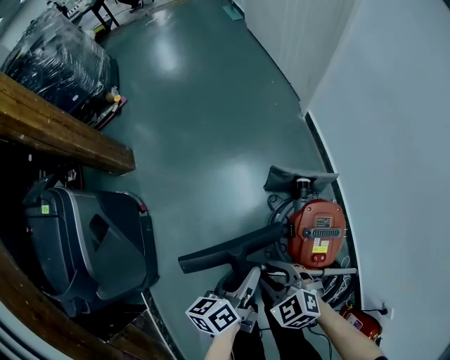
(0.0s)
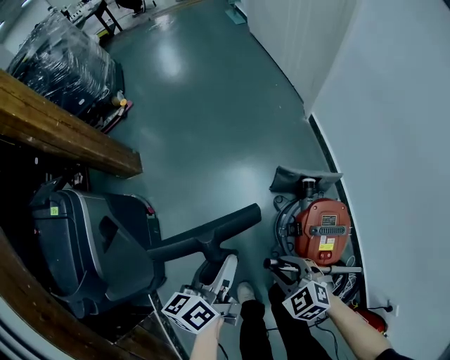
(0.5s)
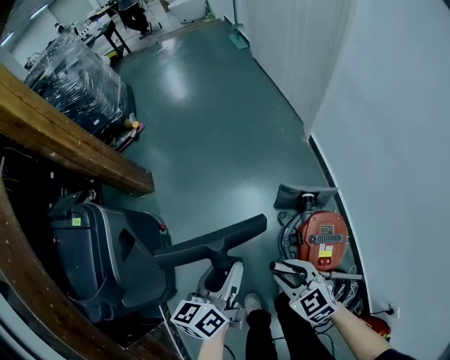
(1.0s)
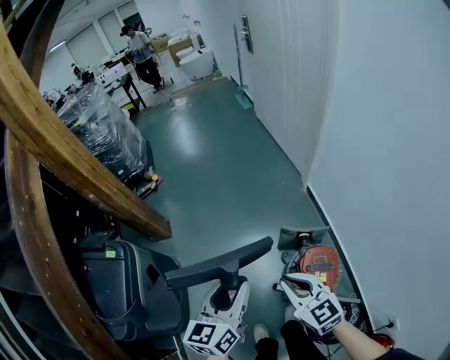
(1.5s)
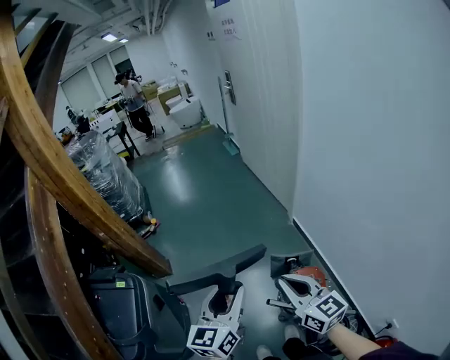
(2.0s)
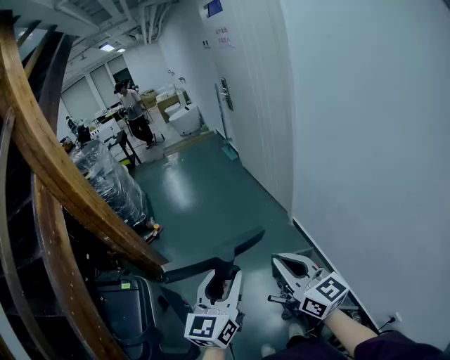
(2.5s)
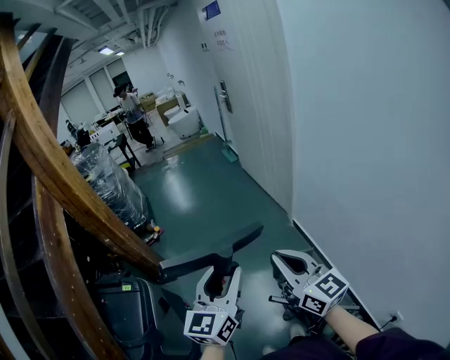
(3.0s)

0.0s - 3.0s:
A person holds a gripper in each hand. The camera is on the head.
0.0s - 1.5s: Both grippers move upward, roughly 30 cm. The right gripper rotates some 30 degrees, and closes up. Meanwhile the left gripper rotates about 40 degrees.
1.5s - 3.0s: Both grippers move upward, approximately 20 cm. The left gripper rotates about 20 degrees, while the right gripper changes its angle by approximately 30 degrees.

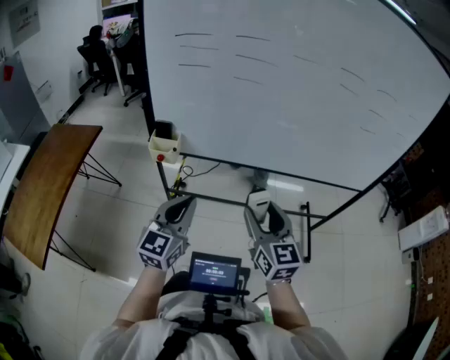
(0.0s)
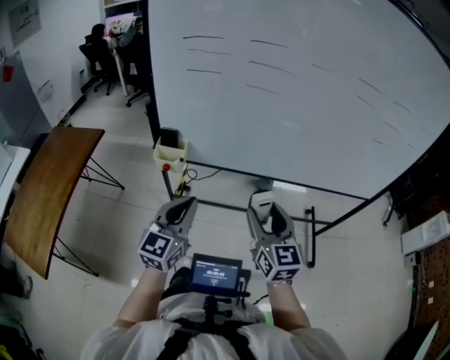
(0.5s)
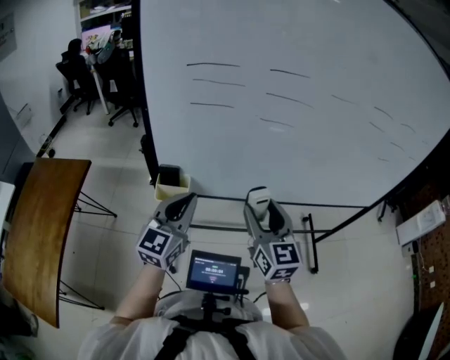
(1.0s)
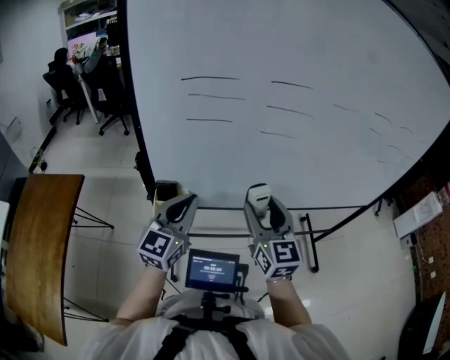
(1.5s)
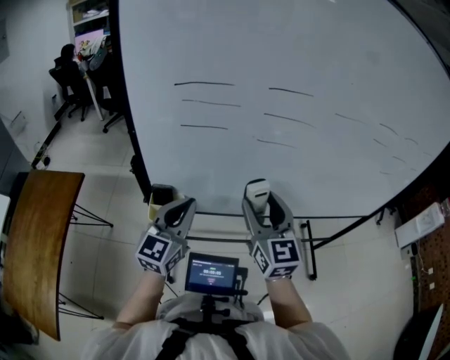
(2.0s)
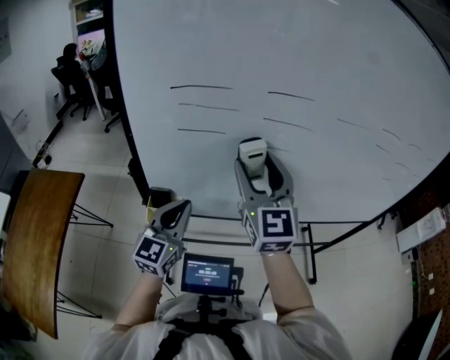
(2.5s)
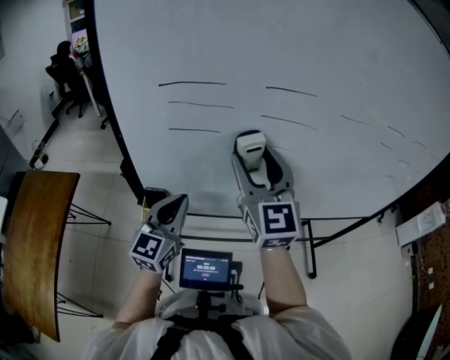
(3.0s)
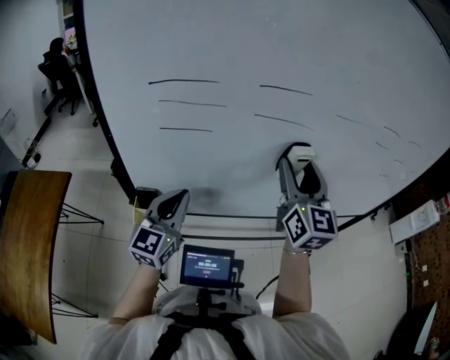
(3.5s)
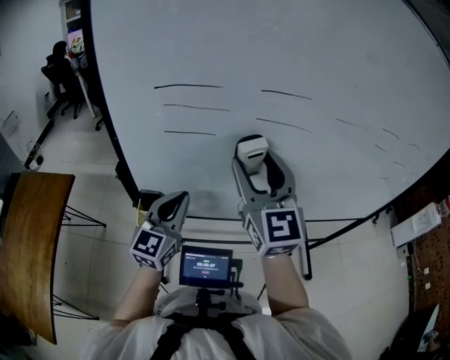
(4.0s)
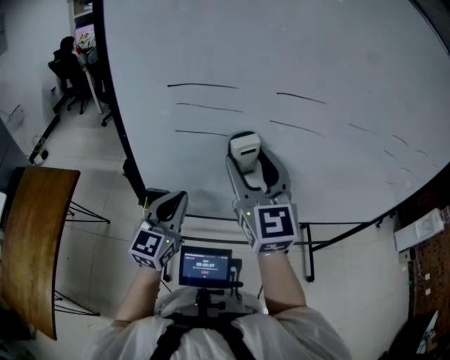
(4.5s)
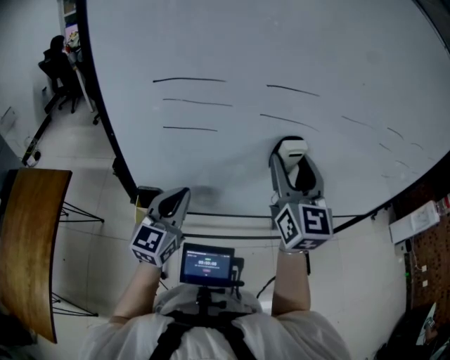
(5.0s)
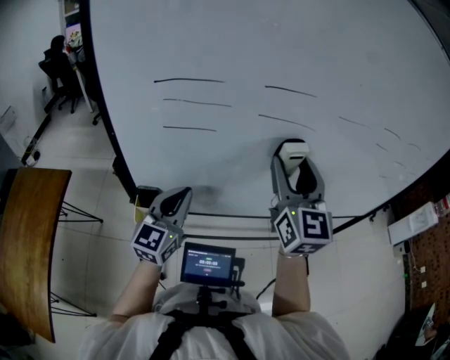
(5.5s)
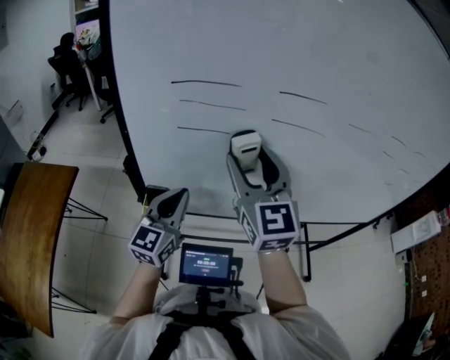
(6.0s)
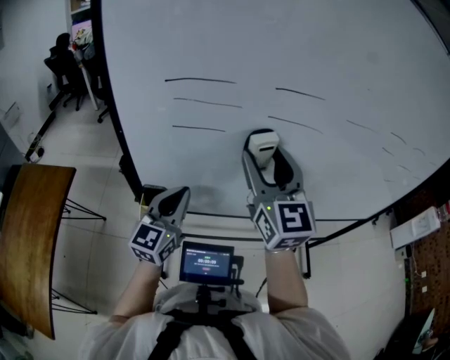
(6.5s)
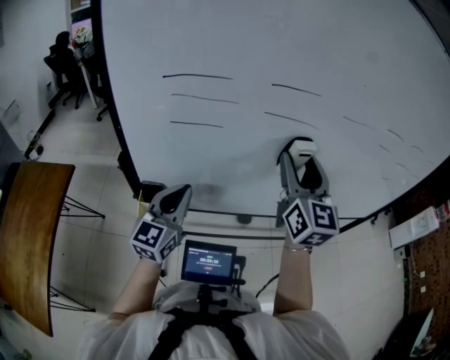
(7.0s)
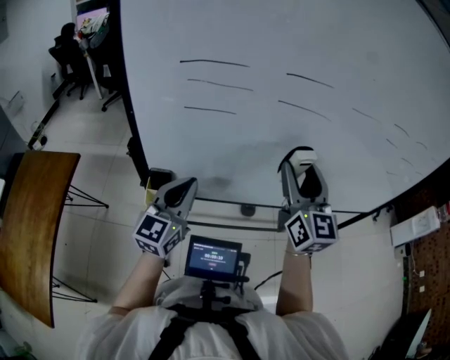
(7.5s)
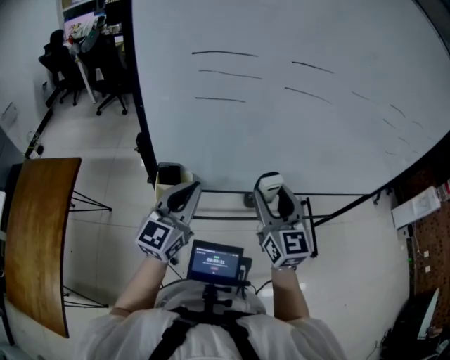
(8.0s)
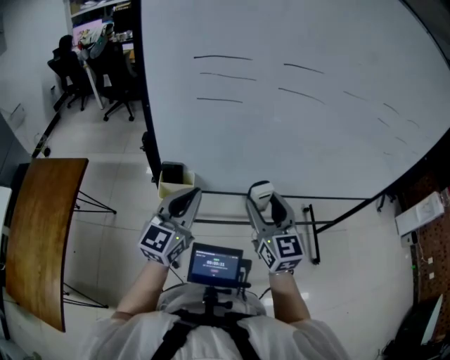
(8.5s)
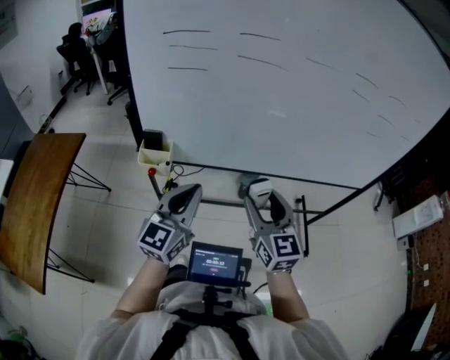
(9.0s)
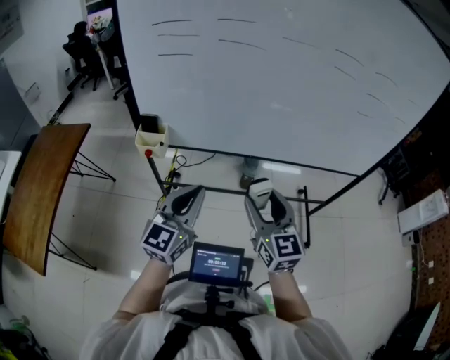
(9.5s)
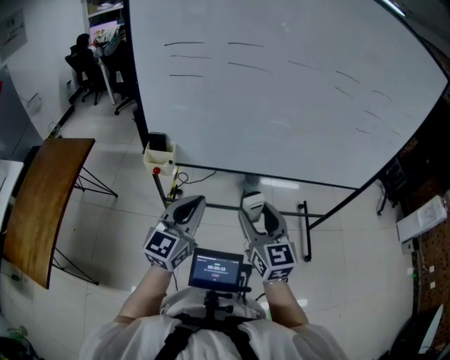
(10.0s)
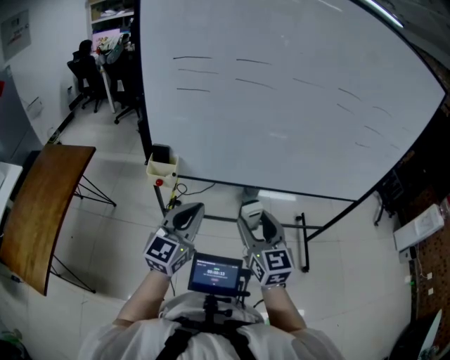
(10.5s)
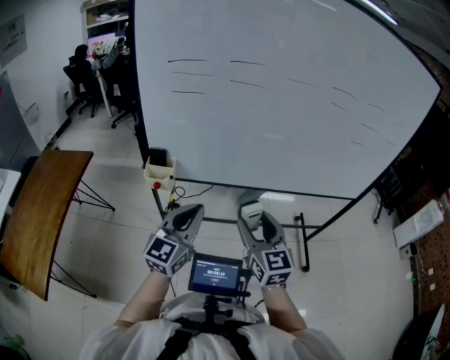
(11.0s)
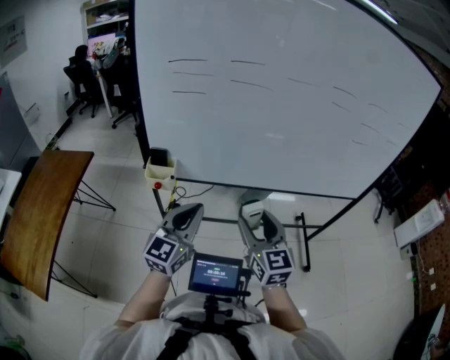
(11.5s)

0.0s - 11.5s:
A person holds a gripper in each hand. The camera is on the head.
0.0s - 2.0s: The grippers both shift forward and to the left by about 25 cm.
2.0s - 4.0s: The right gripper shifts some 10 cm upward and forward, and reaches approximately 10 cm to the right, then returns.
4.0s - 6.0s: The right gripper travels to the right and back again, some 10 cm each way.
6.0s - 7.5s: The right gripper travels to the right by about 15 cm.
7.5s - 9.5s: The left gripper goes about 30 cm backward and to the right; the right gripper heads backward and downward, covering approximately 30 cm.
9.5s - 11.5s: Both grippers move to the left, approximately 5 cm.

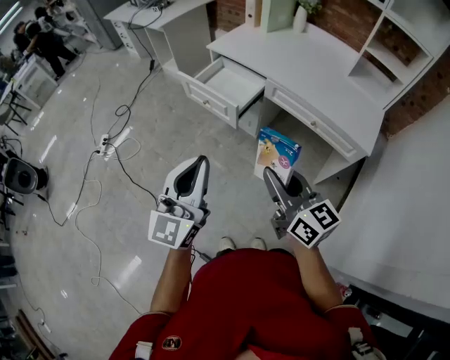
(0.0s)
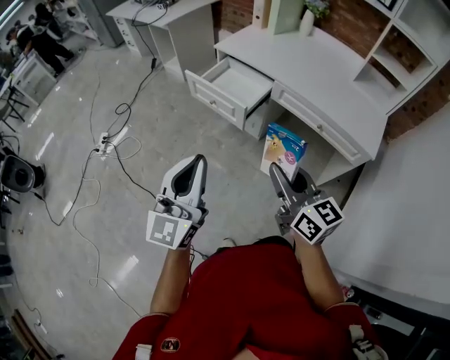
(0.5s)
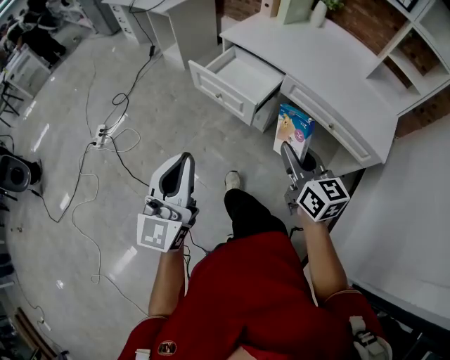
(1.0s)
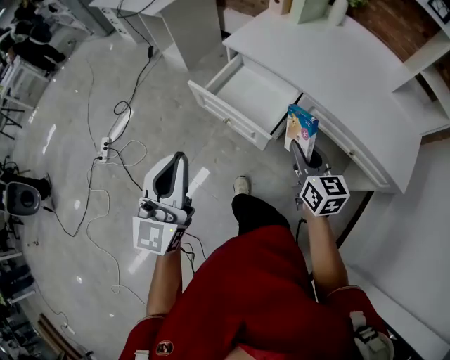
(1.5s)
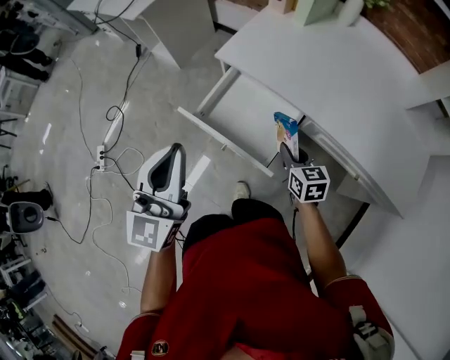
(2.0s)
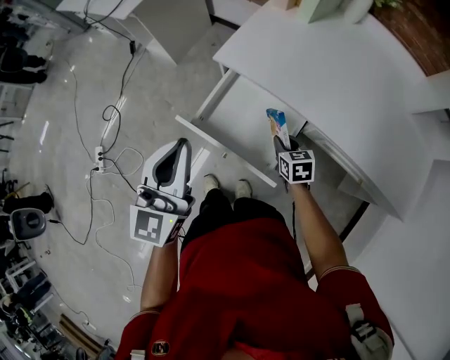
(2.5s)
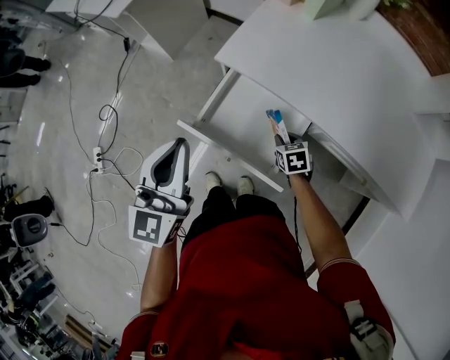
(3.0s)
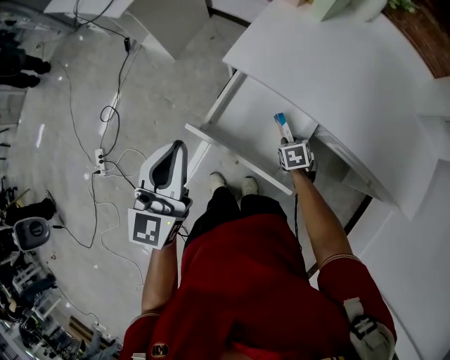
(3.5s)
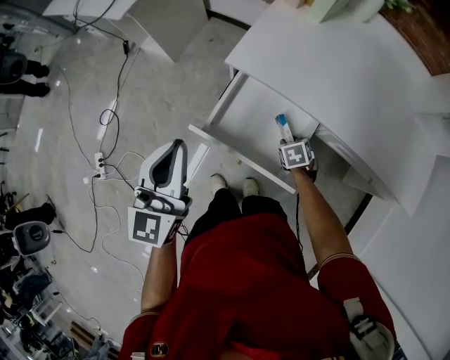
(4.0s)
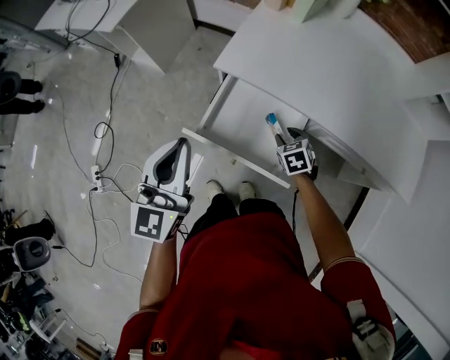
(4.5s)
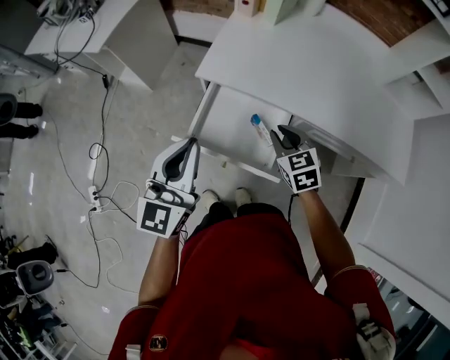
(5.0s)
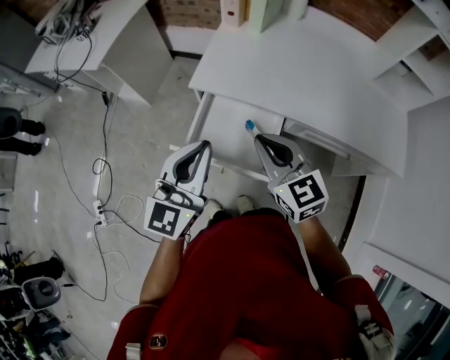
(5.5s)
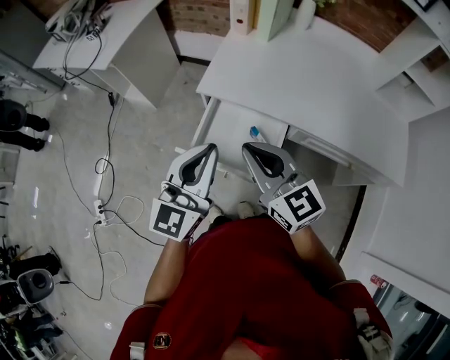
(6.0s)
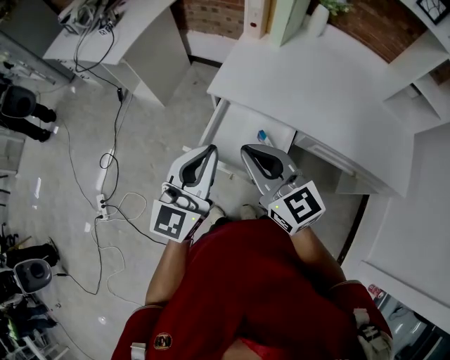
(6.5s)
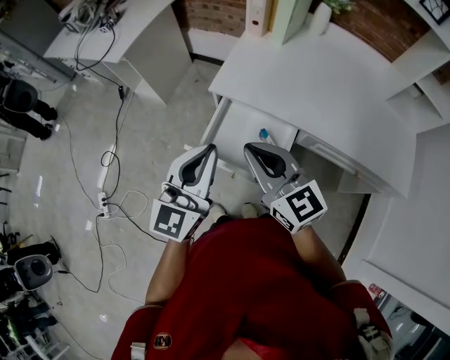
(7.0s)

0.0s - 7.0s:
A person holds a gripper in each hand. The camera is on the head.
0.0s - 2.0s: Both grippers are carried forward, some 40 cm. The right gripper heads downward, covering some 25 cm, and tips its fingers downward by approximately 30 degrees.
2.0s - 3.5s: The right gripper travels downward and forward by some 20 cm, and points its fingers some 30 degrees further downward; the left gripper is displaced forward by roughly 10 cm.
3.5s - 5.0s: The right gripper moves upward, roughly 20 cm, and turns by some 30 degrees. Meanwhile the left gripper travels to the right by roughly 5 cm.
5.0s - 7.0s: The right gripper moves upward and to the left, approximately 20 cm, and angles its fingers upward, by approximately 30 degrees.

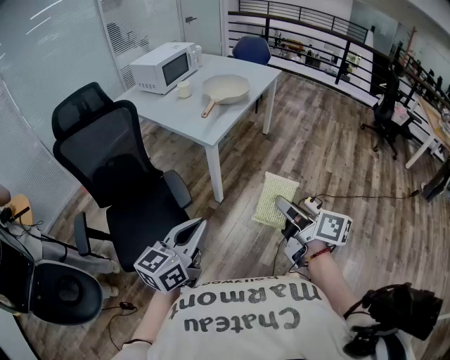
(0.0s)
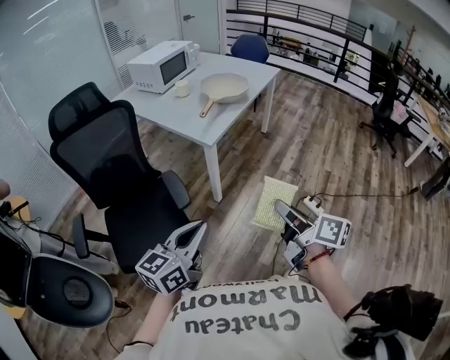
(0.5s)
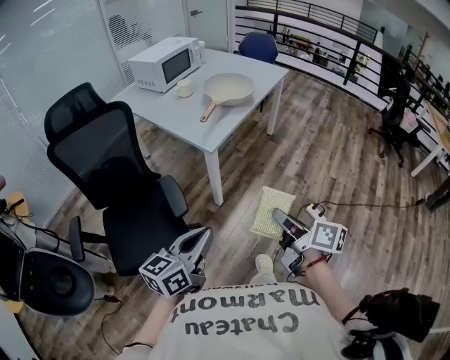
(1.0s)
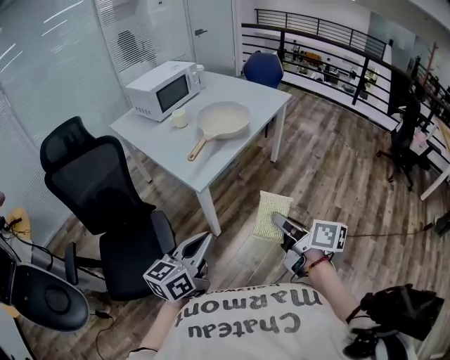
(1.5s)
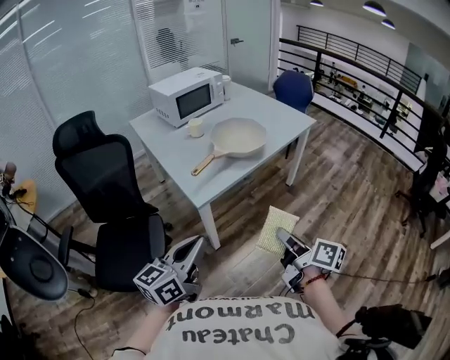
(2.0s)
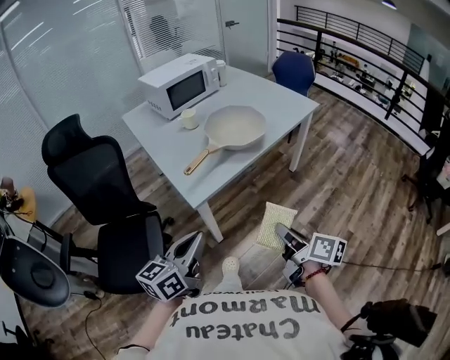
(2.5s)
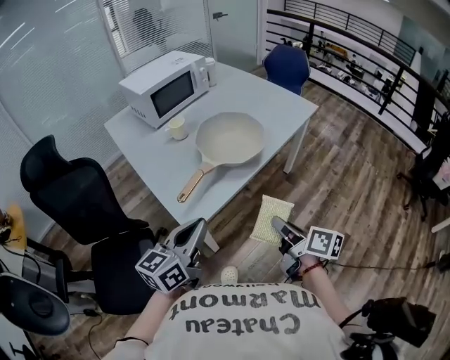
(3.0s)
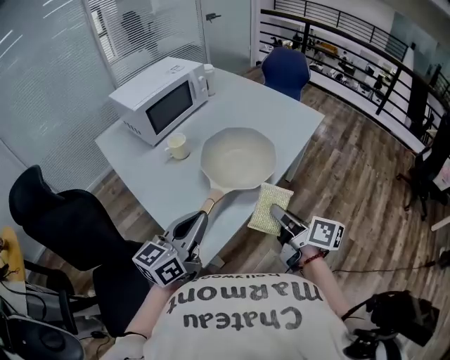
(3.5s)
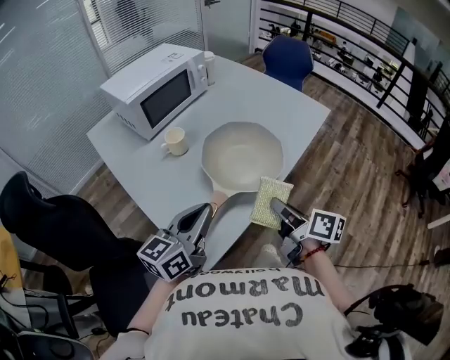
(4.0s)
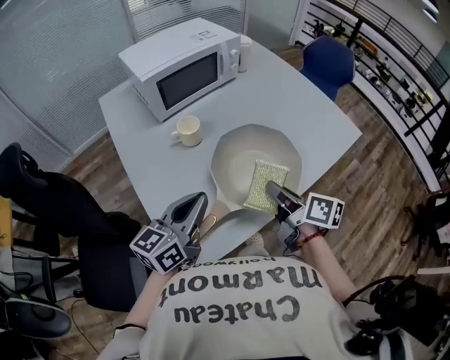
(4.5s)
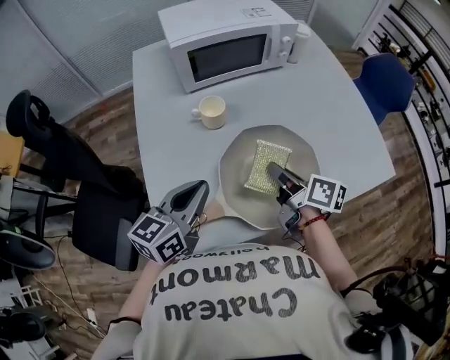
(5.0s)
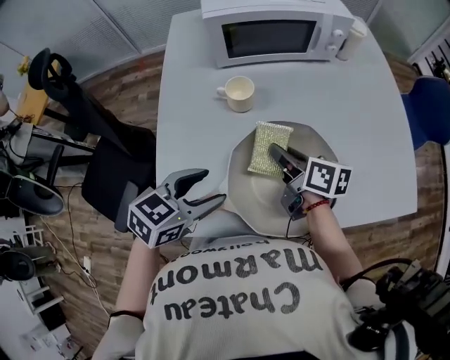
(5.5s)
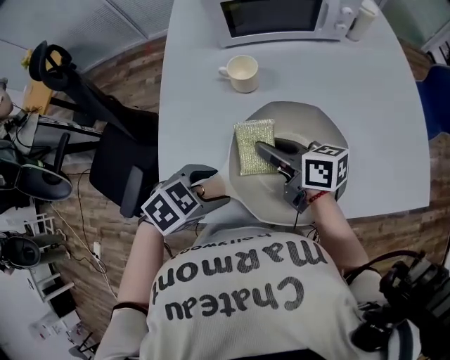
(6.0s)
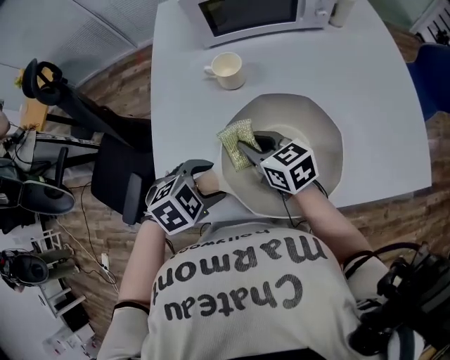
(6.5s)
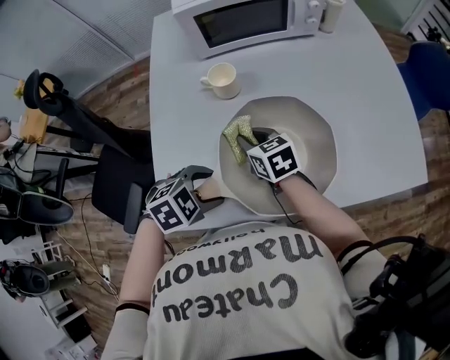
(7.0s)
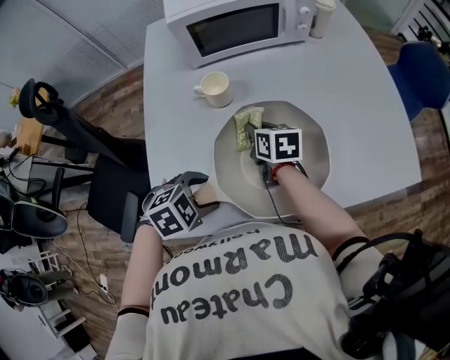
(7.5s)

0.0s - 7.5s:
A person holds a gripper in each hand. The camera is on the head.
0.0s - 2.0s: The left gripper ends up about 30 cm from where it was.
2.0s - 4.0s: The left gripper ends up roughly 40 cm from where it was.
4.0s - 5.5s: The left gripper moves roughly 15 cm, points its fingers approximately 30 degrees further downward, and opens its fingers.
5.5s - 7.5s: The left gripper heads downward, covering some 10 cm, and swivels roughly 40 degrees.
